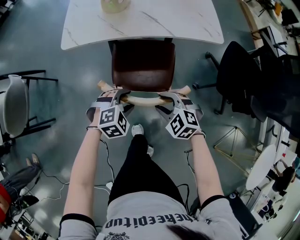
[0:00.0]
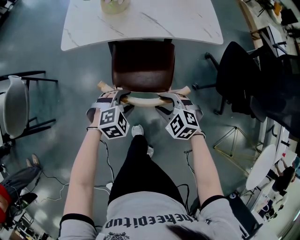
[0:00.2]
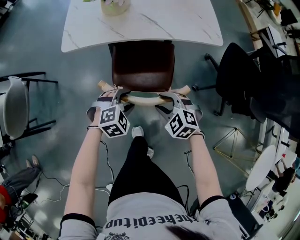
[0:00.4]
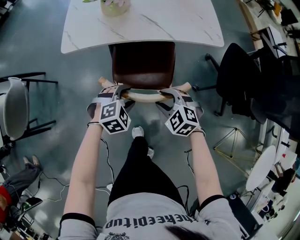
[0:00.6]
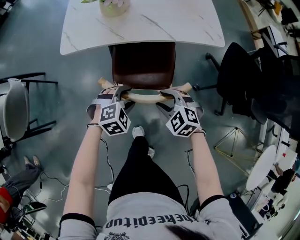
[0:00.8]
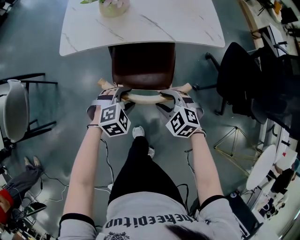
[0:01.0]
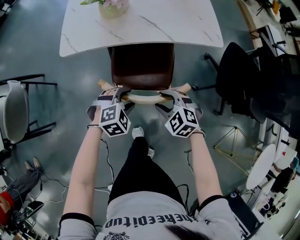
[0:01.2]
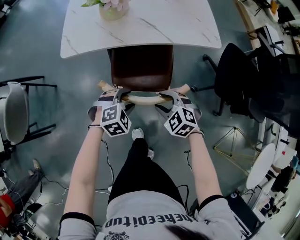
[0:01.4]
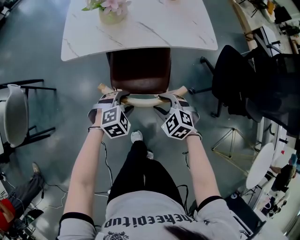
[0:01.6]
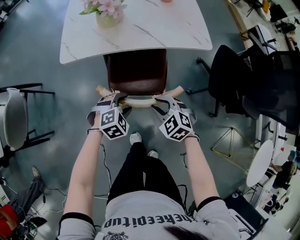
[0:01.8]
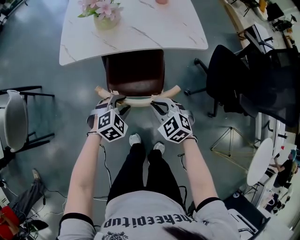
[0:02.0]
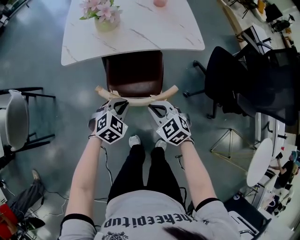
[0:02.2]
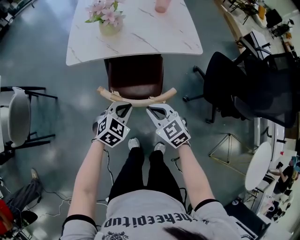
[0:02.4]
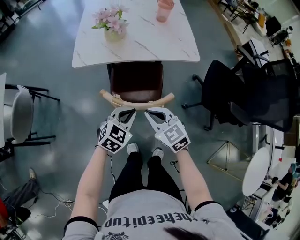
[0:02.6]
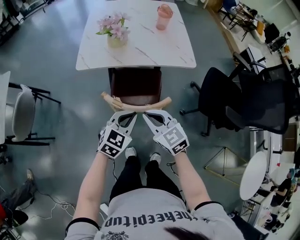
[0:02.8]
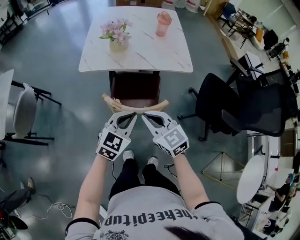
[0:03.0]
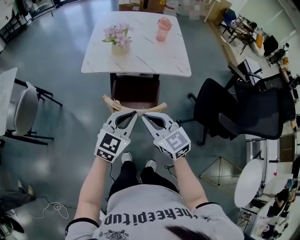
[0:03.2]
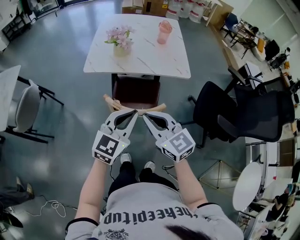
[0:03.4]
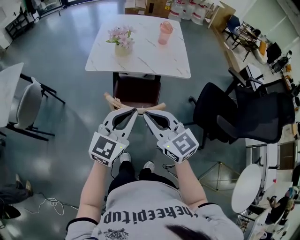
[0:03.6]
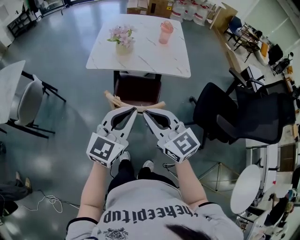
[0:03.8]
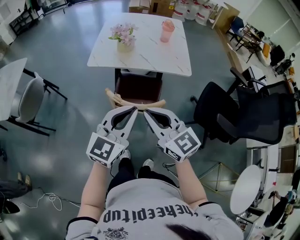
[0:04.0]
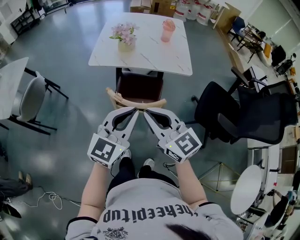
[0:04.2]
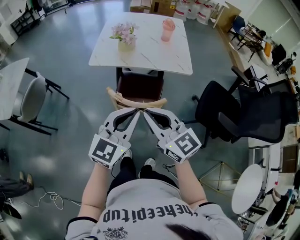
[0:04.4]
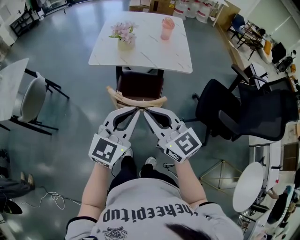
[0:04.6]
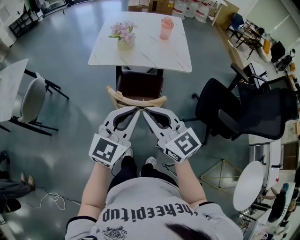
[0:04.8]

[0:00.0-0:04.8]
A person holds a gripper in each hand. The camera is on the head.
0:00.0 to 0:01.6: The grippers make only small movements.
0:01.6 to 0:03.2: The grippers both shift upward by roughly 25 cm. The left gripper points its fingers roughly 40 degrees further upward, and closes up; the right gripper angles its fingers upward, by about 40 degrees, and closes.
0:03.2 to 0:04.8: The grippers both shift upward and backward by some 10 cm.

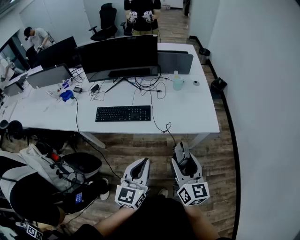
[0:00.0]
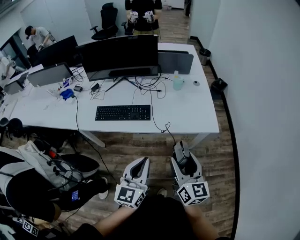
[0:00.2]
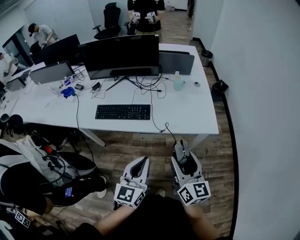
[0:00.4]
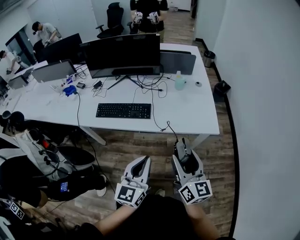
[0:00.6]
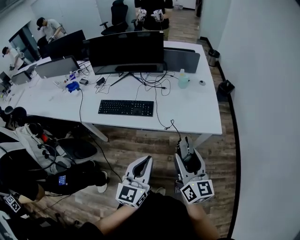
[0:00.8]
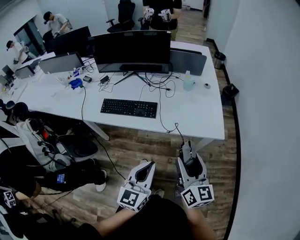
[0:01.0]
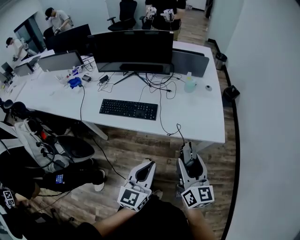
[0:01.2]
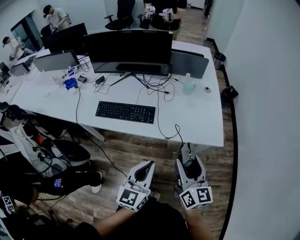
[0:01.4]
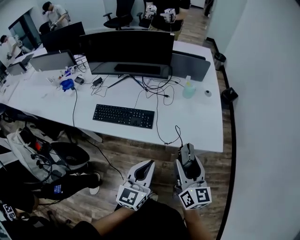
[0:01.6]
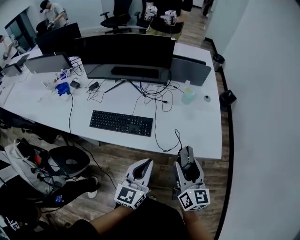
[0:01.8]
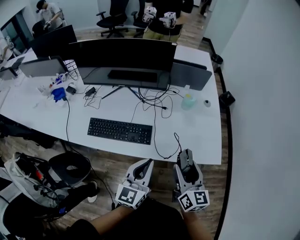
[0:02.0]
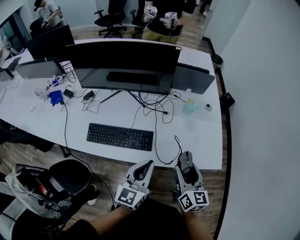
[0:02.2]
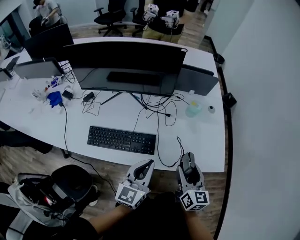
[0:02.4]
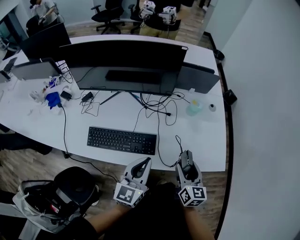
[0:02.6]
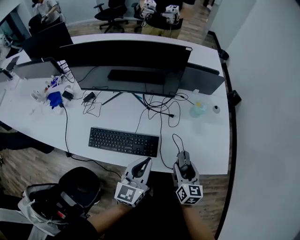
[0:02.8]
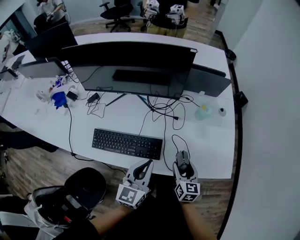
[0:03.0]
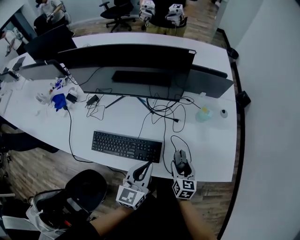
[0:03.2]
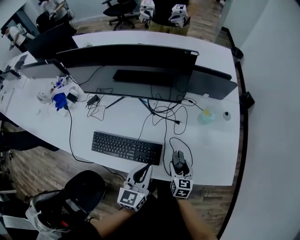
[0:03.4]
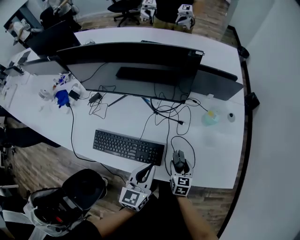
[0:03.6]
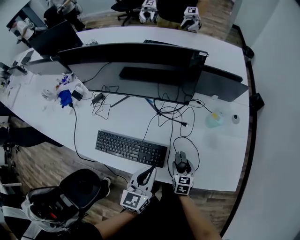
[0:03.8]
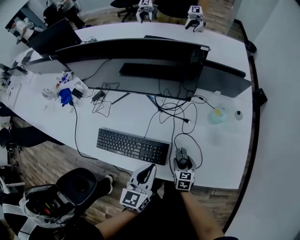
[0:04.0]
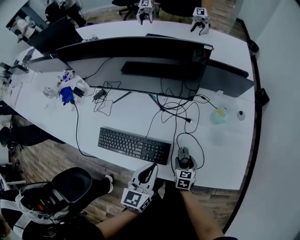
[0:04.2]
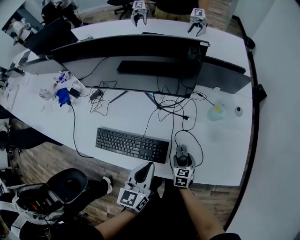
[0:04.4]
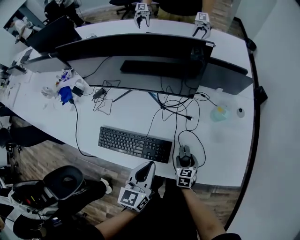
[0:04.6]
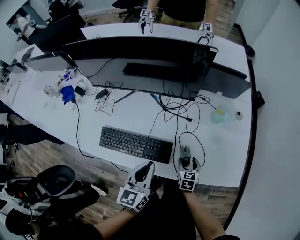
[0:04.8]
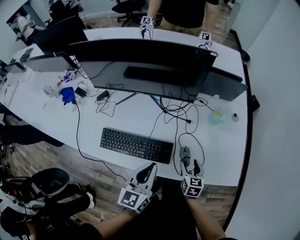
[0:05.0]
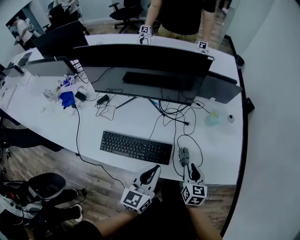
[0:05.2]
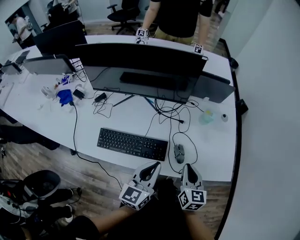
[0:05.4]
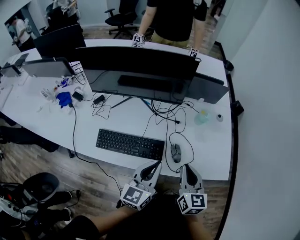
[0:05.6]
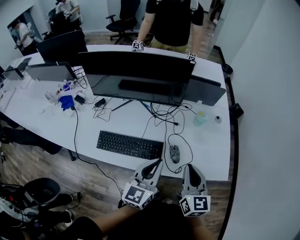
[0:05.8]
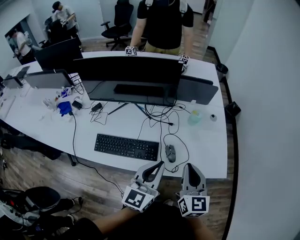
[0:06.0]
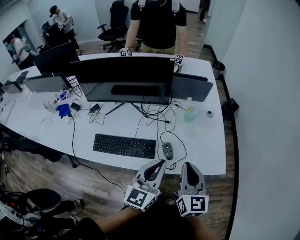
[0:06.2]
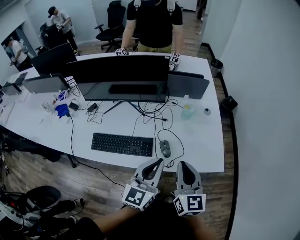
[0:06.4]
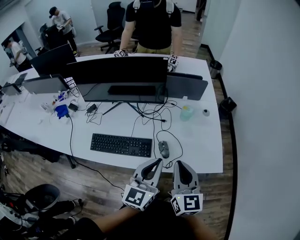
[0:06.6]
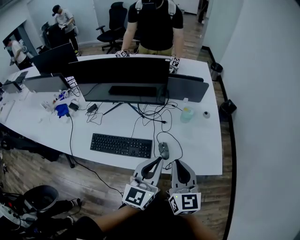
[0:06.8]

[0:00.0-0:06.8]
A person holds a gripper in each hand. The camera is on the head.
0:00.0 to 0:01.4: The left gripper shifts by approximately 5 cm; the right gripper shifts approximately 5 cm forward.
0:01.4 to 0:02.8: The left gripper is displaced forward and to the left by approximately 30 cm. Meanwhile the right gripper travels forward and downward by approximately 30 cm, and rotates about 20 degrees.
0:02.8 to 0:04.0: The right gripper shifts roughly 20 cm downward and forward, and changes its angle by about 20 degrees, while the left gripper heads downward, covering some 5 cm.
0:04.0 to 0:05.4: The right gripper is displaced upward by about 25 cm, changes its angle by about 30 degrees, and closes; the left gripper is displaced upward and backward by roughly 10 cm.
0:05.4 to 0:06.8: The left gripper shifts approximately 15 cm to the right and upward, while the right gripper travels upward and backward by about 15 cm.

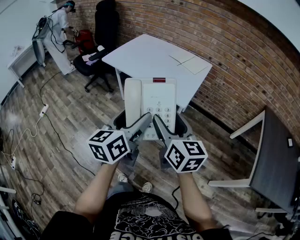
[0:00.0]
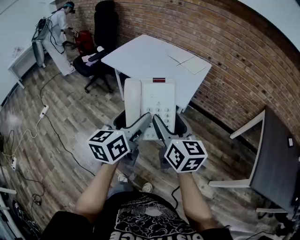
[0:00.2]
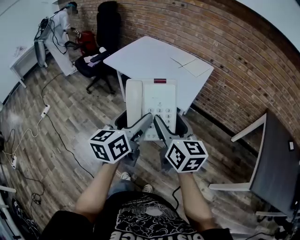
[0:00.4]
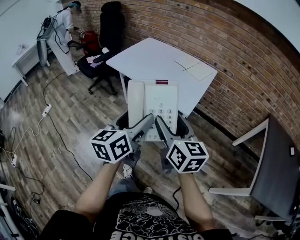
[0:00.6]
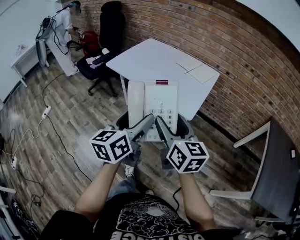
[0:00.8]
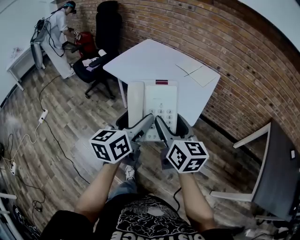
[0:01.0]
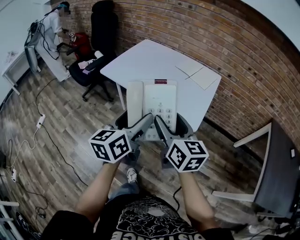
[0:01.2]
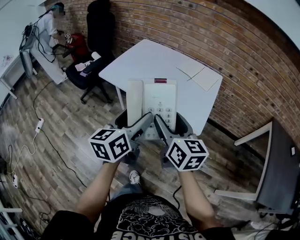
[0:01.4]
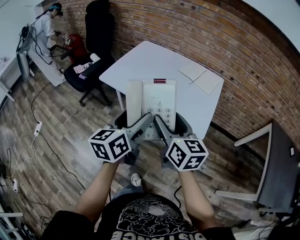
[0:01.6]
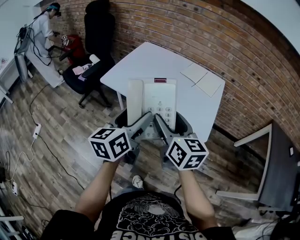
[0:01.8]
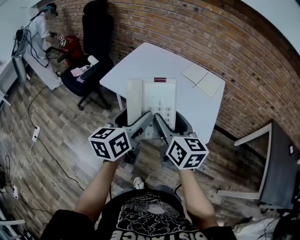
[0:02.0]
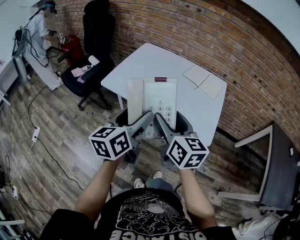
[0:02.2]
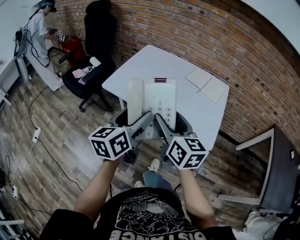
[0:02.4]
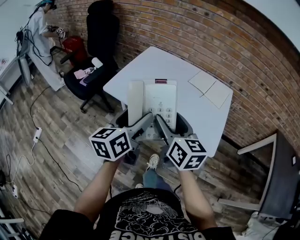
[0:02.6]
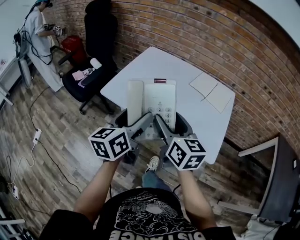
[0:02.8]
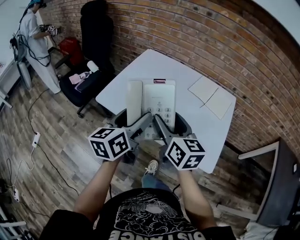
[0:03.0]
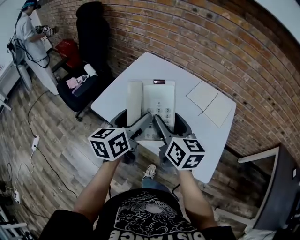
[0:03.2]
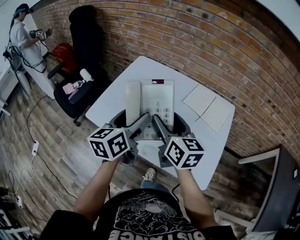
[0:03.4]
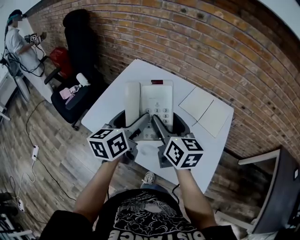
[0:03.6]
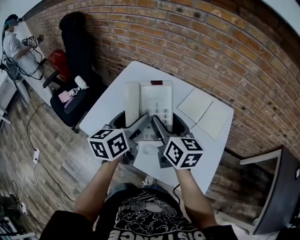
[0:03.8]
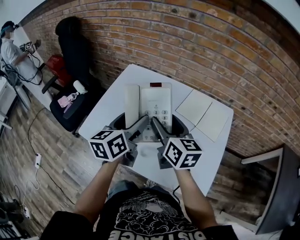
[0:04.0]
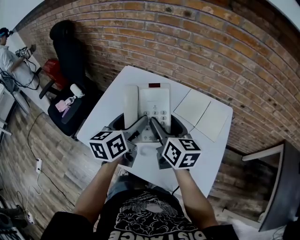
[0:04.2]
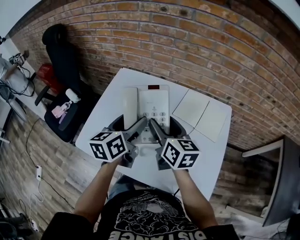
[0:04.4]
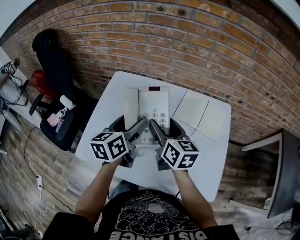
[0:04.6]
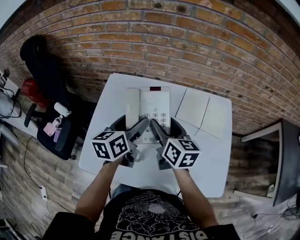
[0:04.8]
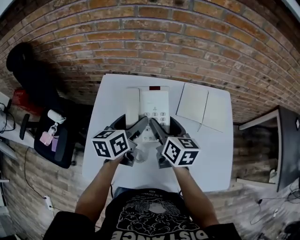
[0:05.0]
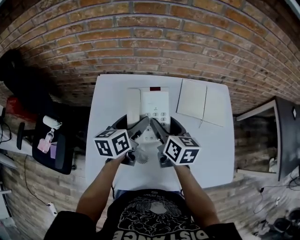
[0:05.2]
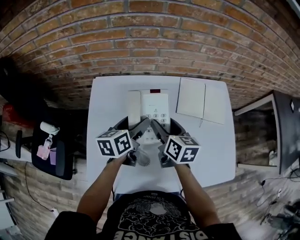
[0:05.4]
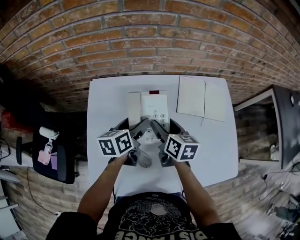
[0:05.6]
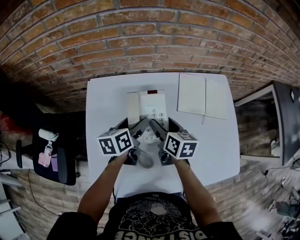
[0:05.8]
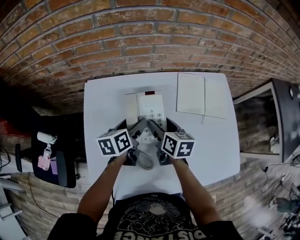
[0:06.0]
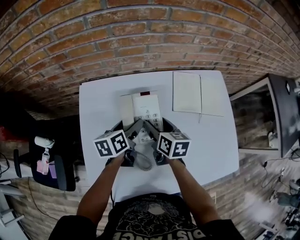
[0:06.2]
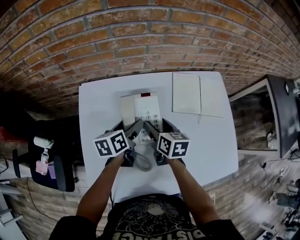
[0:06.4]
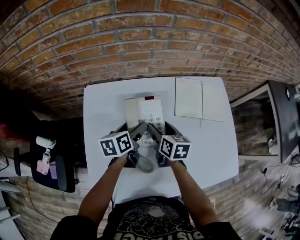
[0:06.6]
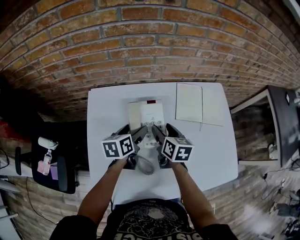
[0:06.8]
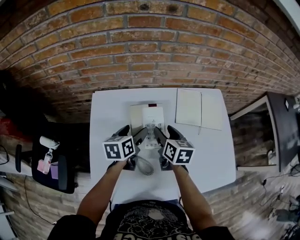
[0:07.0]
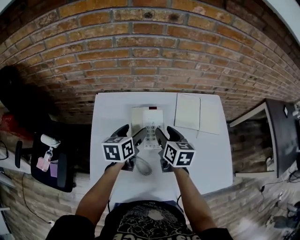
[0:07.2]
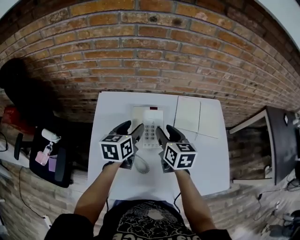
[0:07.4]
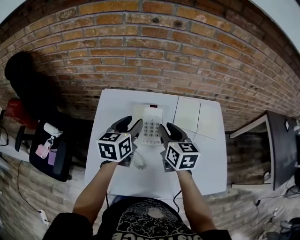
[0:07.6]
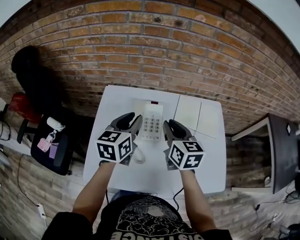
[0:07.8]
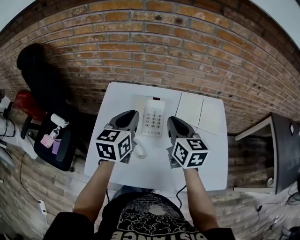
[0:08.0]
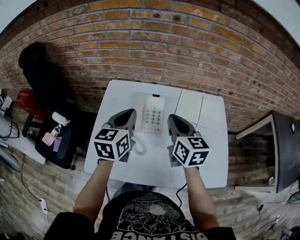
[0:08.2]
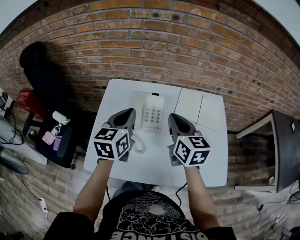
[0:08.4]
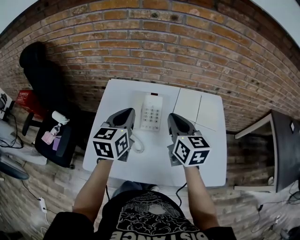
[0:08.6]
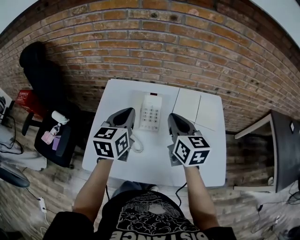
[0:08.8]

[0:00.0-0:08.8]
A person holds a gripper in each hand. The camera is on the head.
0:00.0 to 0:01.4: Both grippers travel together forward and to the left, about 25 cm.
0:01.4 to 0:03.0: The two grippers go roughly 25 cm forward.
0:03.0 to 0:04.4: Both grippers travel together forward, roughly 25 cm.
0:04.4 to 0:05.8: Both grippers travel together downward, roughly 15 cm. The left gripper rotates roughly 30 degrees; the right gripper turns by approximately 30 degrees.
0:05.8 to 0:07.4: Both grippers move upward, about 10 cm. The right gripper closes its fingers.
0:07.4 to 0:08.8: The left gripper heads backward and upward, covering roughly 15 cm, and closes its fingers; the right gripper is displaced upward and backward by roughly 10 cm, and closes.

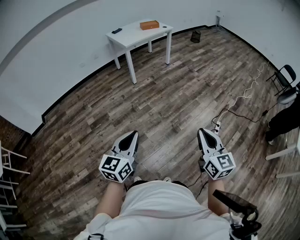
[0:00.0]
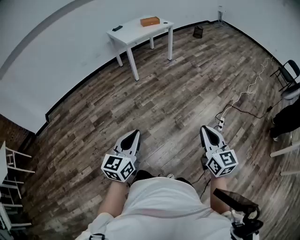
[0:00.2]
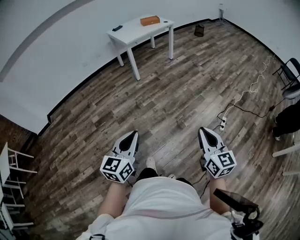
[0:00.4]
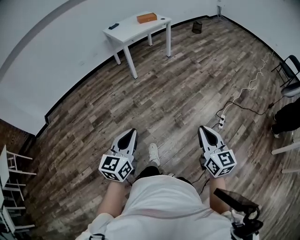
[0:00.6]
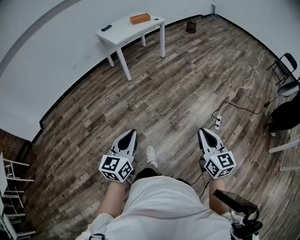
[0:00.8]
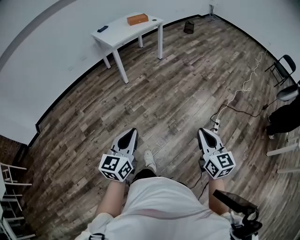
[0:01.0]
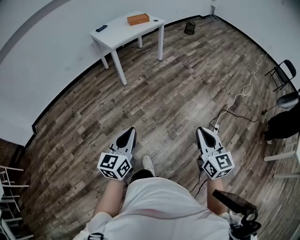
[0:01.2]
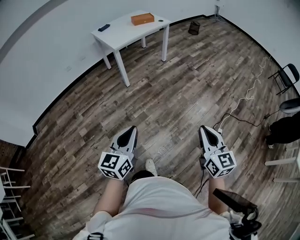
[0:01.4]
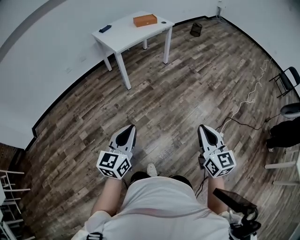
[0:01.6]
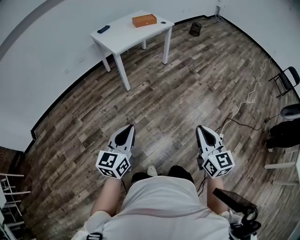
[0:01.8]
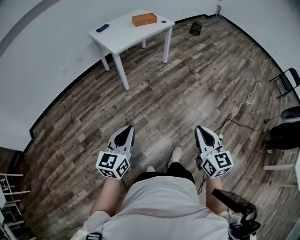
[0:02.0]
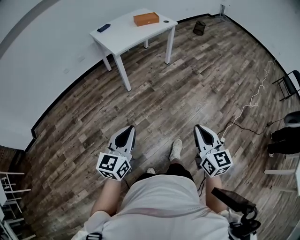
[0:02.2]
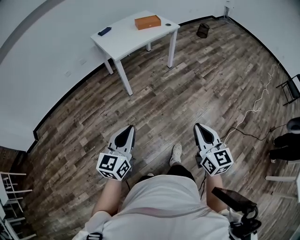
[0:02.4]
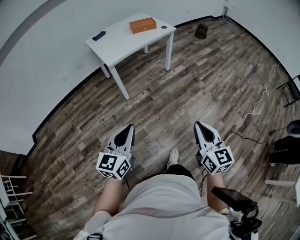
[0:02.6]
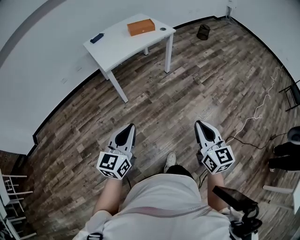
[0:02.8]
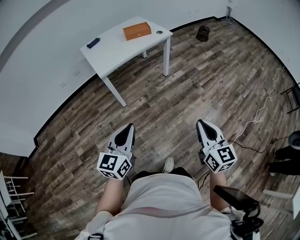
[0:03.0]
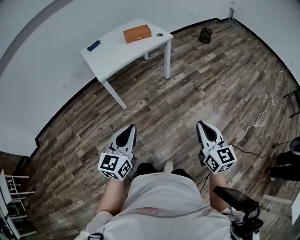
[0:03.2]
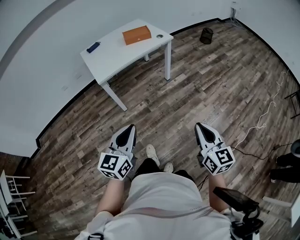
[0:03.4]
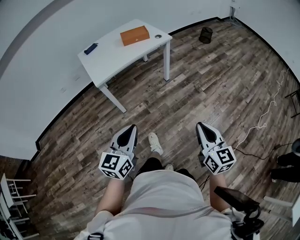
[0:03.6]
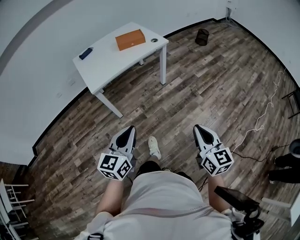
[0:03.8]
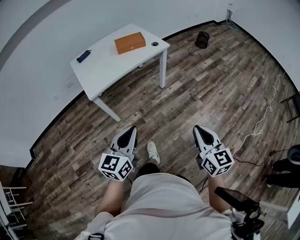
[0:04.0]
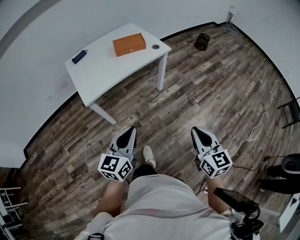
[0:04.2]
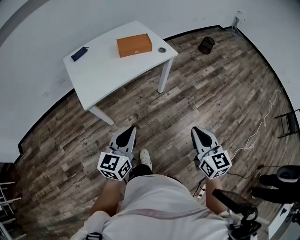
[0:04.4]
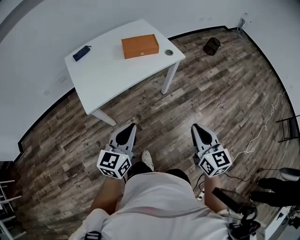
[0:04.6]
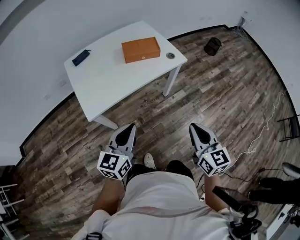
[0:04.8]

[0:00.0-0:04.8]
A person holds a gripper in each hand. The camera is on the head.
0:00.0 to 0:01.6: The grippers both shift forward by roughly 35 cm.
0:01.6 to 0:03.2: The grippers both shift forward and to the right by about 40 cm.
0:03.2 to 0:04.8: Both grippers are carried forward, approximately 40 cm.
